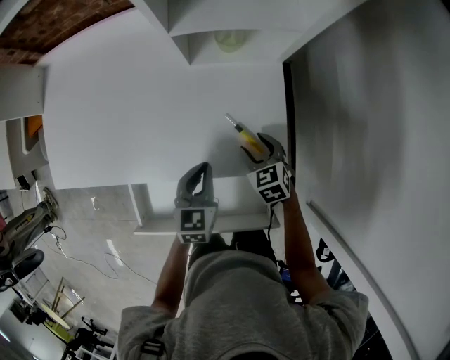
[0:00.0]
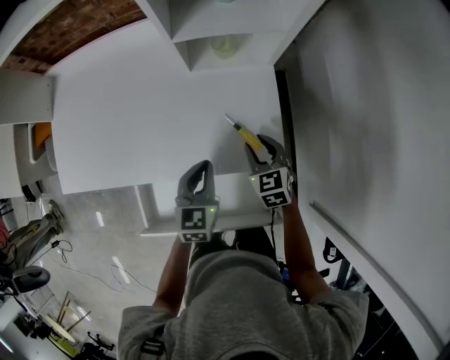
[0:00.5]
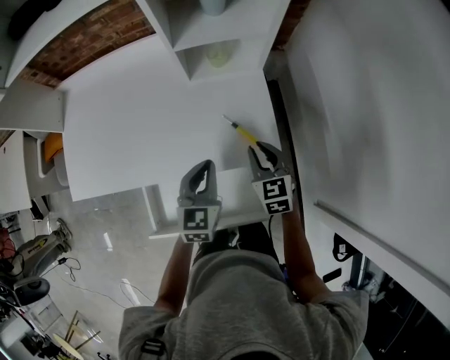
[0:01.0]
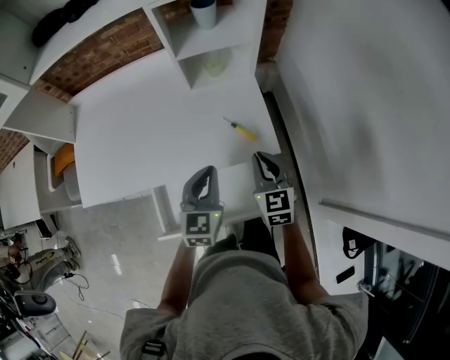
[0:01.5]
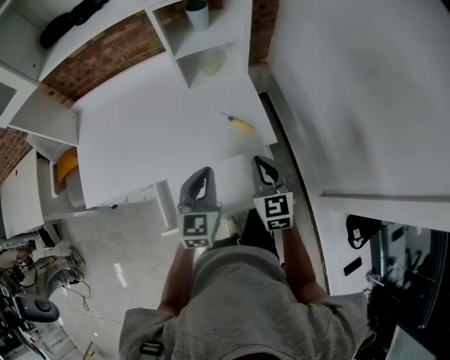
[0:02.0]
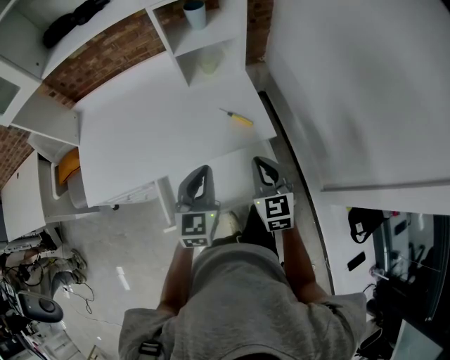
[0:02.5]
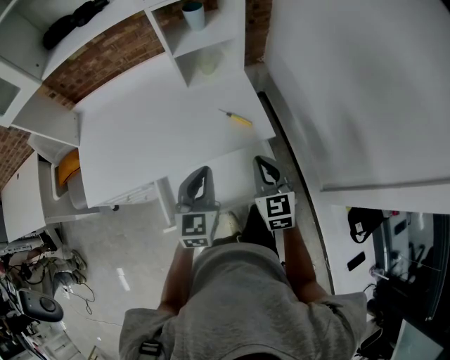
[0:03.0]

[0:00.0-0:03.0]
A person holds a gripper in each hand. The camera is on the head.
0:00.0 to 0:01.5: Both grippers move upward and backward, some 25 cm. The left gripper turns by some 20 degrees, while the right gripper swivels some 30 degrees, and closes its fingers.
0:01.5 to 0:03.0: Both grippers move backward, about 10 cm.

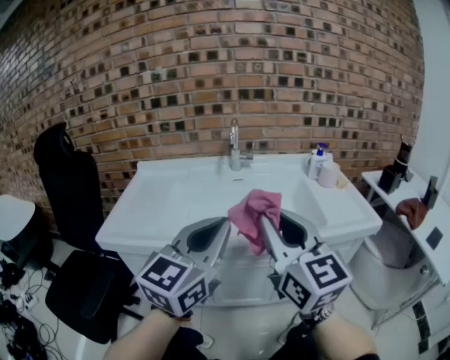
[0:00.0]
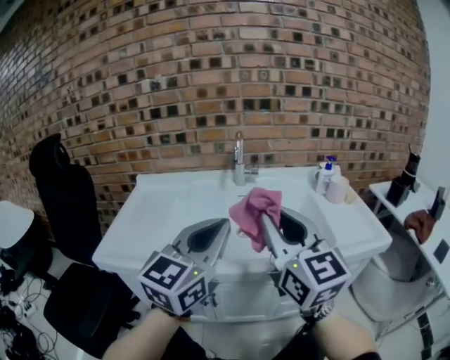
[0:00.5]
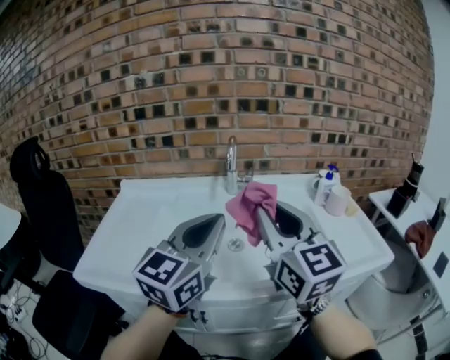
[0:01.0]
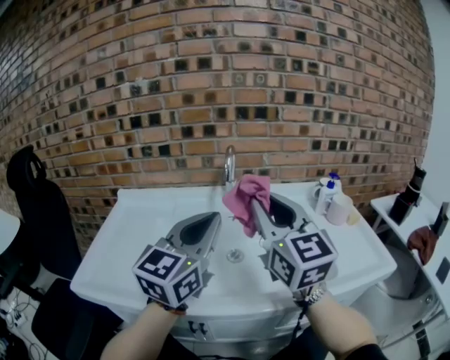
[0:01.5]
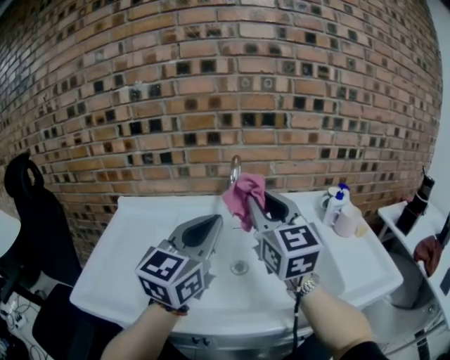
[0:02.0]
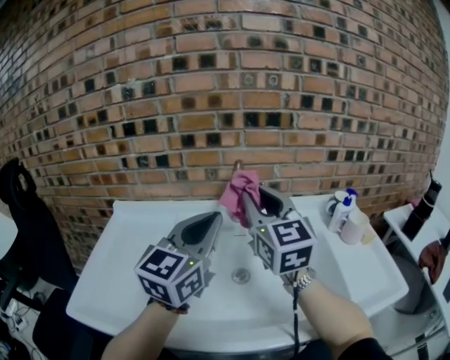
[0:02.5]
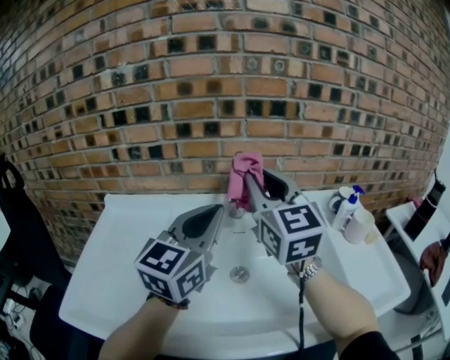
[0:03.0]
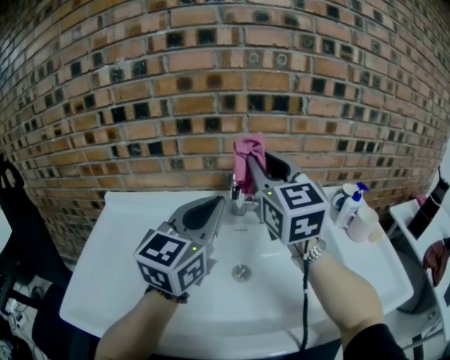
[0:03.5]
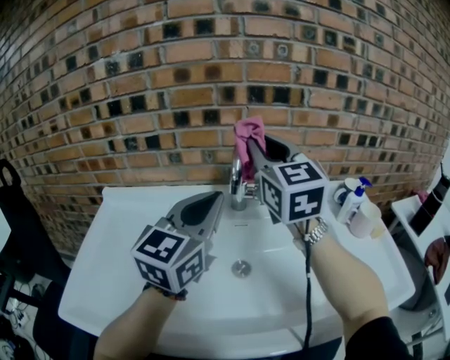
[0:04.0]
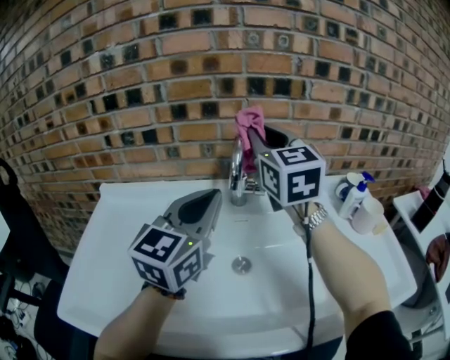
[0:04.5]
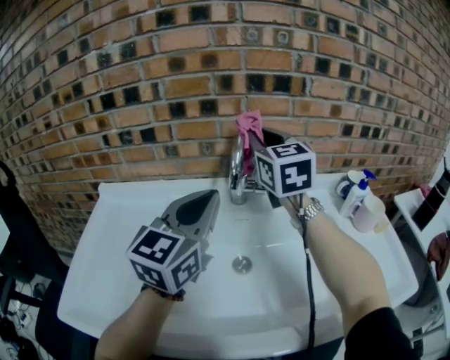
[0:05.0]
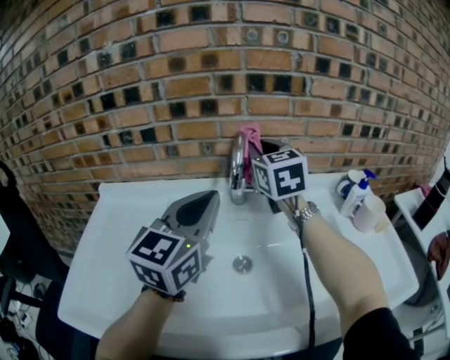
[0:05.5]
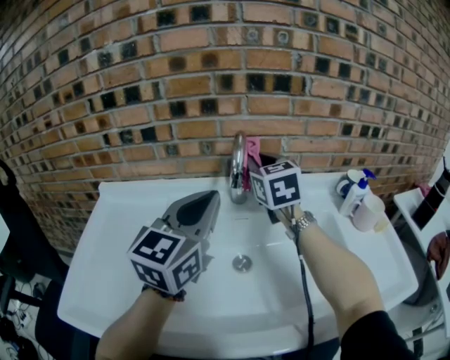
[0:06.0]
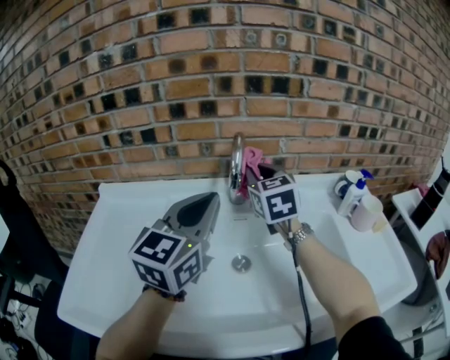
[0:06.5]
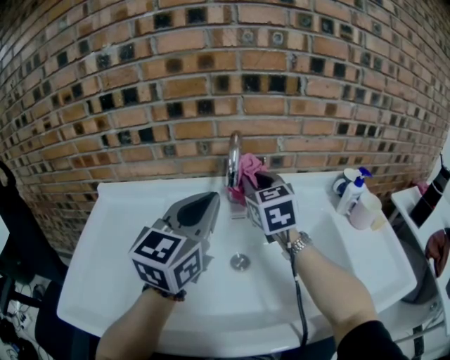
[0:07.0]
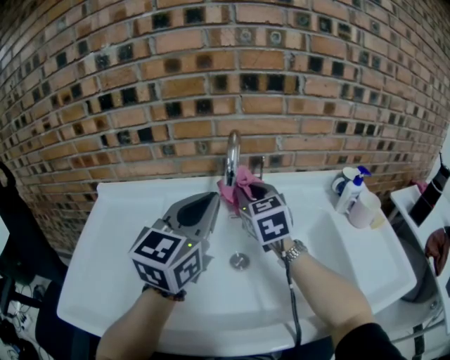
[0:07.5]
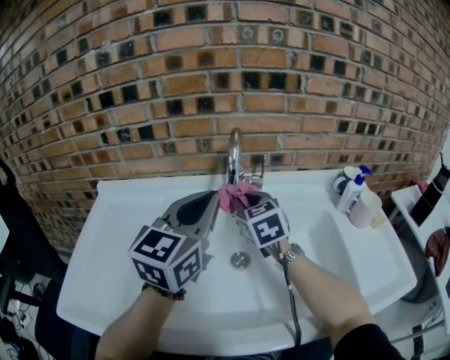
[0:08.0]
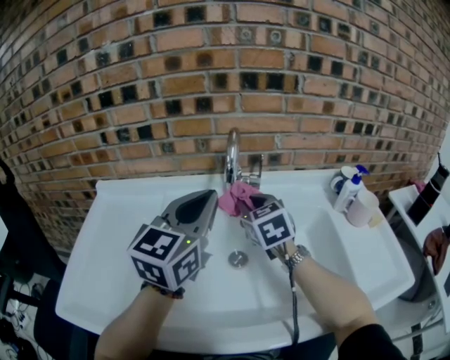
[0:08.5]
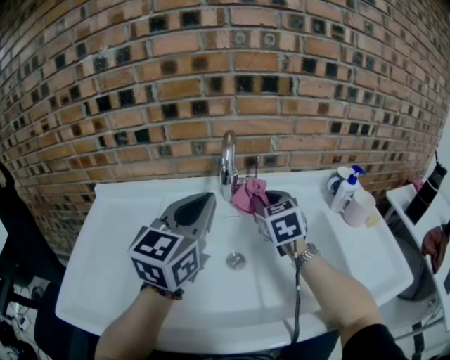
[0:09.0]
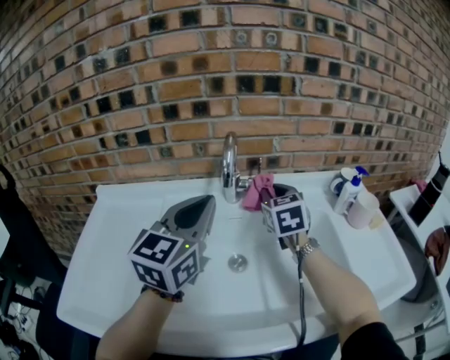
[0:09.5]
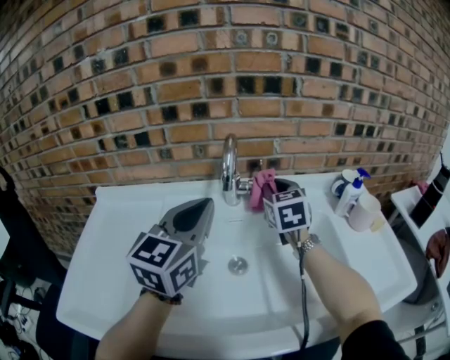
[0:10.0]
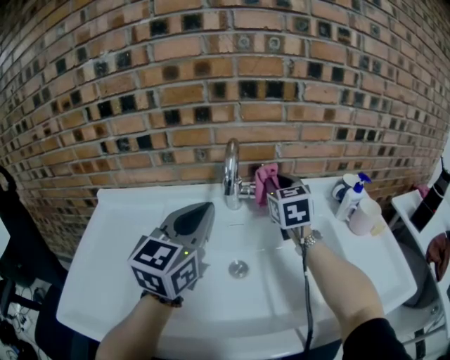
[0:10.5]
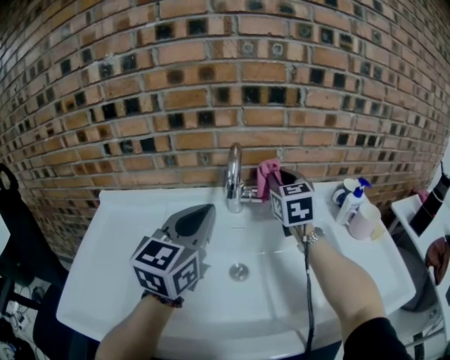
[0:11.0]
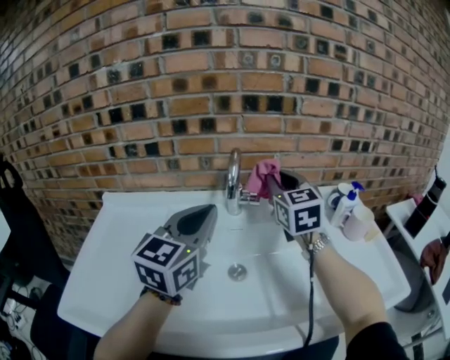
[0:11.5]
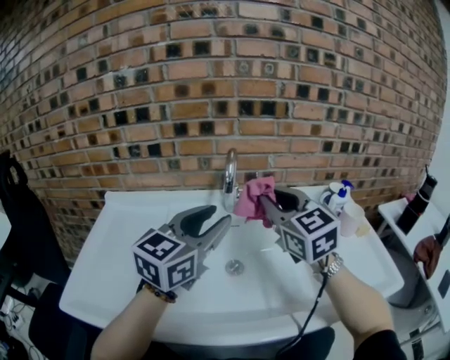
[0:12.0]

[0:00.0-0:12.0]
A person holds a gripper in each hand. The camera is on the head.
0:00.0 to 0:02.0: The two grippers go roughly 25 cm forward.
0:02.0 to 0:04.0: The two grippers go roughly 15 cm forward.
0:04.0 to 0:06.0: The right gripper travels downward and forward by some 15 cm.
0:06.0 to 0:08.0: The right gripper moves downward and backward, some 10 cm.
0:08.0 to 0:10.0: The right gripper heads to the right and forward, covering about 10 cm.
0:10.0 to 0:12.0: The left gripper travels backward by roughly 5 cm, and opens its fingers, while the right gripper is displaced backward and upward by some 20 cm, and rotates approximately 20 degrees.

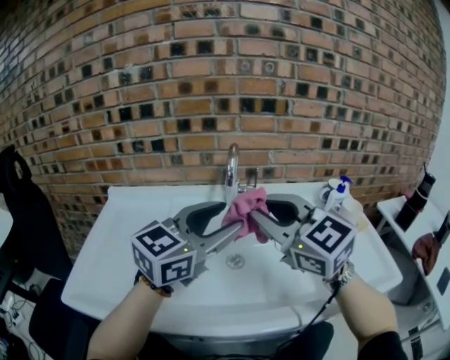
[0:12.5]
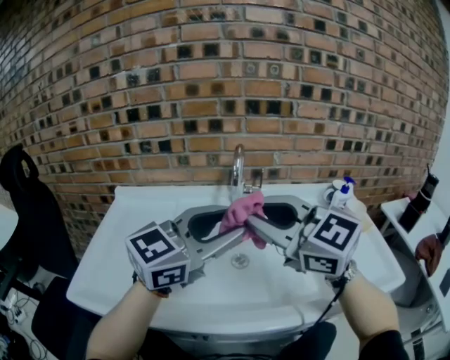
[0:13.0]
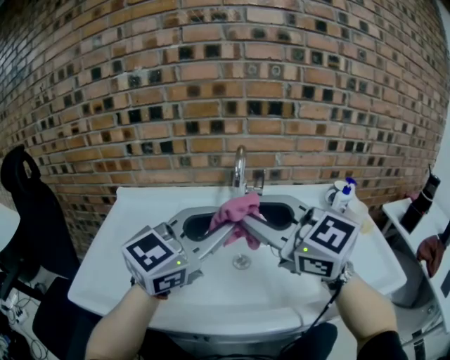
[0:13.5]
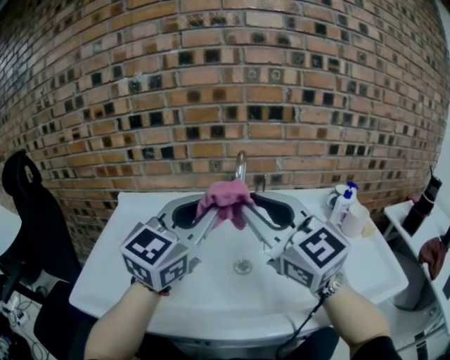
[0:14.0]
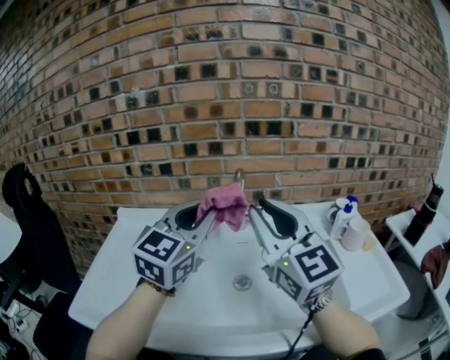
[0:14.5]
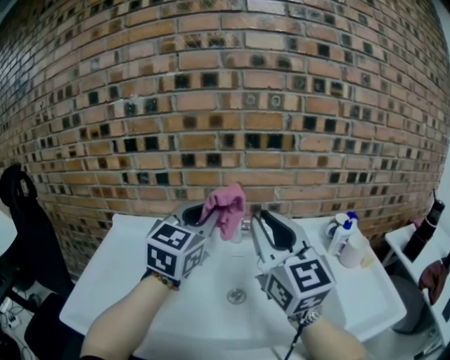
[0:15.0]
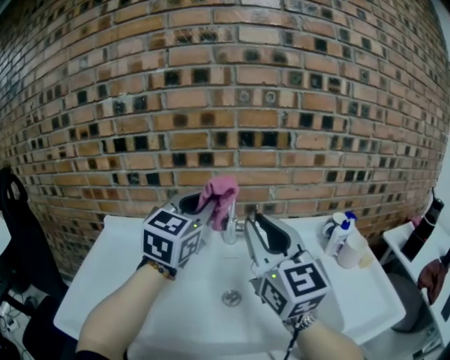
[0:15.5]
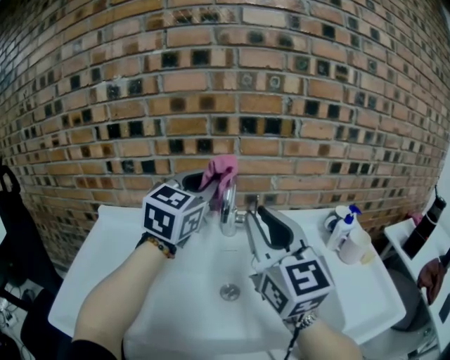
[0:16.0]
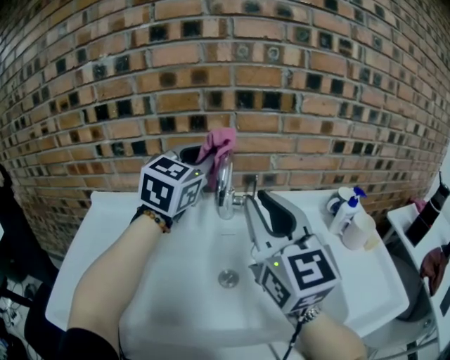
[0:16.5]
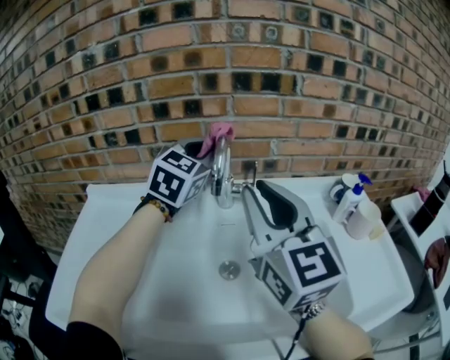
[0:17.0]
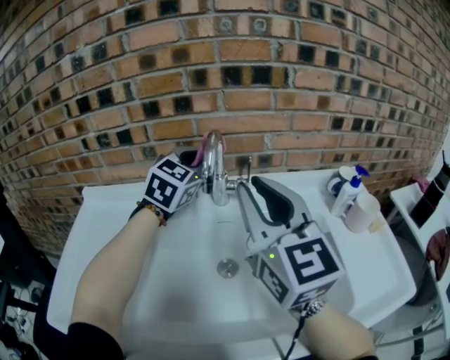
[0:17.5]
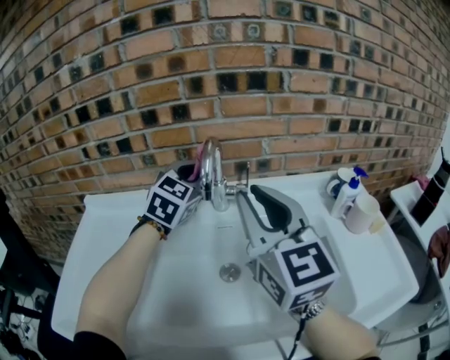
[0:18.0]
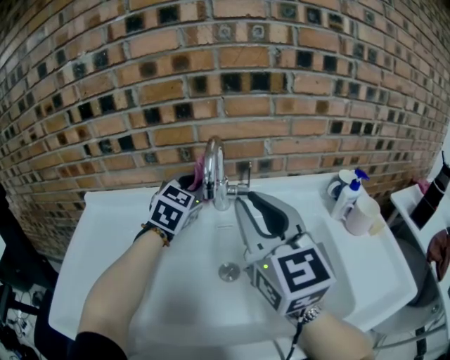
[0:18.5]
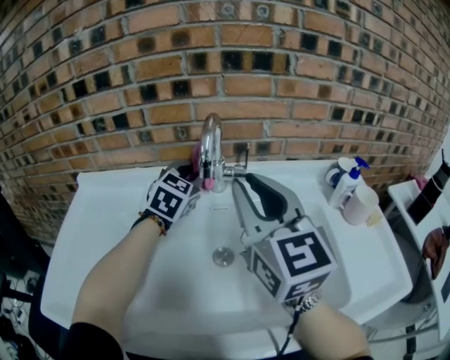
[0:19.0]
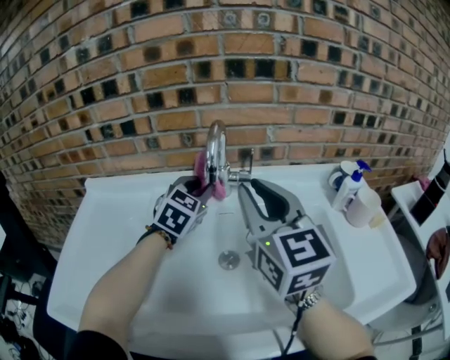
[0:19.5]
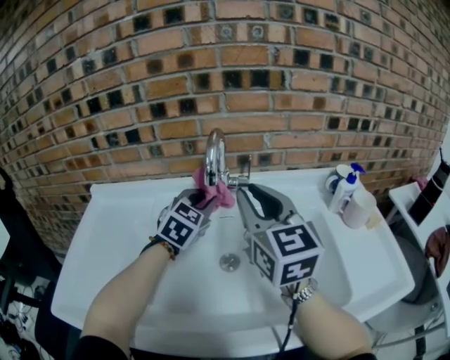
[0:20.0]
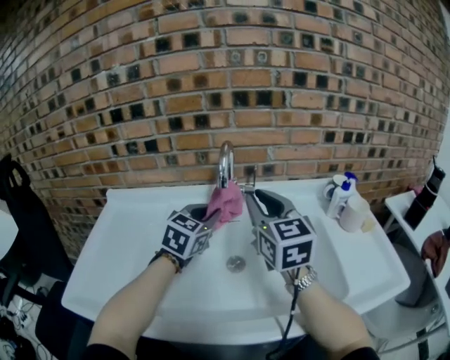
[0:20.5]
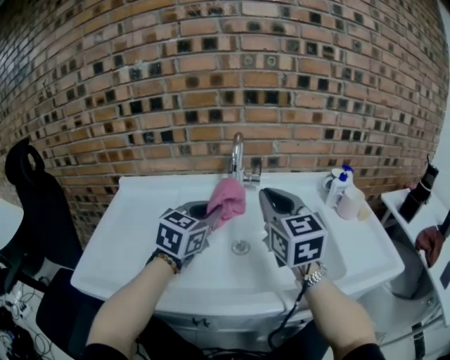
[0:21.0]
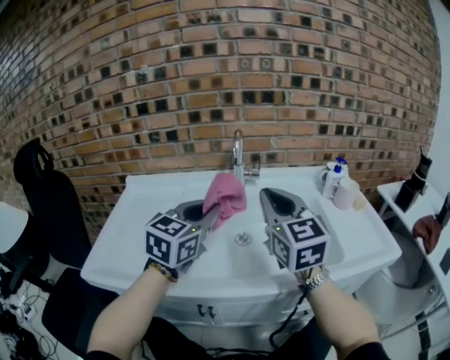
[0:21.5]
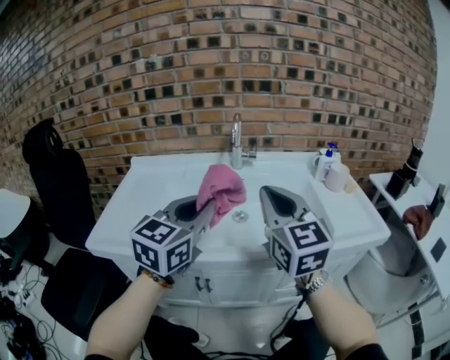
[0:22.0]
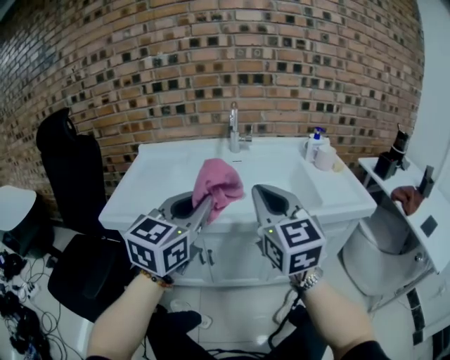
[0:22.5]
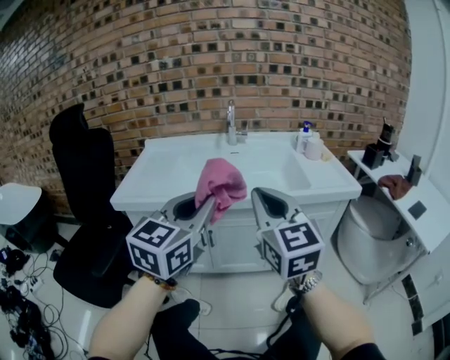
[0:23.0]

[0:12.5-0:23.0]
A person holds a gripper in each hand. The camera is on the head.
0:12.5 to 0:14.5: The left gripper moves forward, to the left and upward, roughly 10 cm, rotates roughly 30 degrees, and closes up, while the right gripper ends up approximately 5 cm from where it was, and turns by roughly 20 degrees.
0:14.5 to 0:16.5: The right gripper heads forward, covering approximately 5 cm. The left gripper travels forward by some 15 cm.
0:16.5 to 0:19.0: The left gripper moves downward, some 20 cm.
0:19.0 to 0:21.0: The right gripper heads backward, covering approximately 5 cm. Meanwhile the left gripper shifts about 20 cm backward.
0:21.0 to 0:23.0: Both grippers travel together backward, approximately 40 cm.

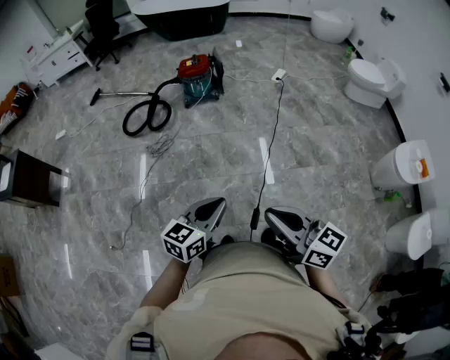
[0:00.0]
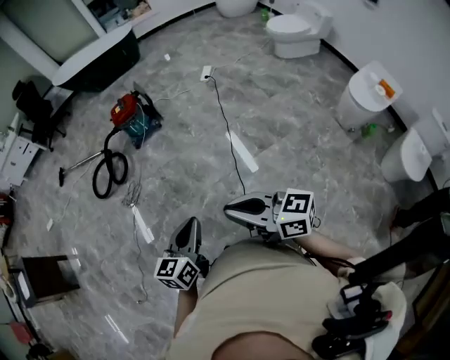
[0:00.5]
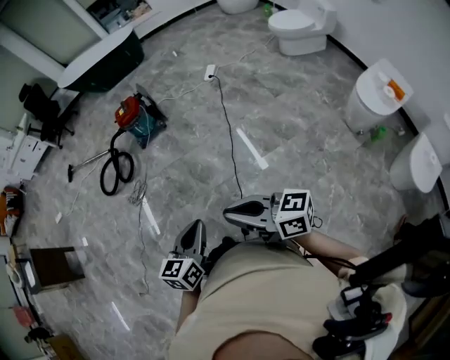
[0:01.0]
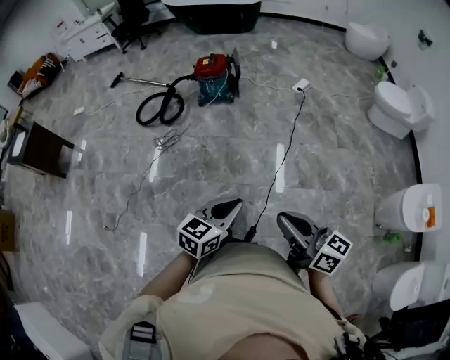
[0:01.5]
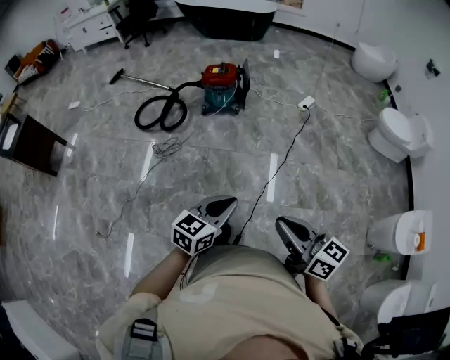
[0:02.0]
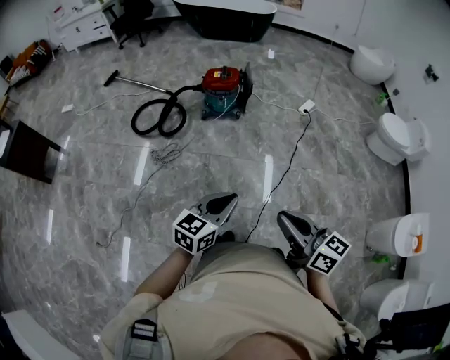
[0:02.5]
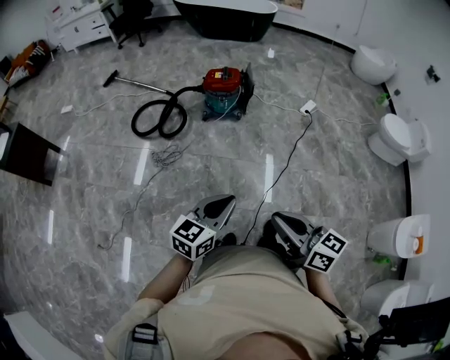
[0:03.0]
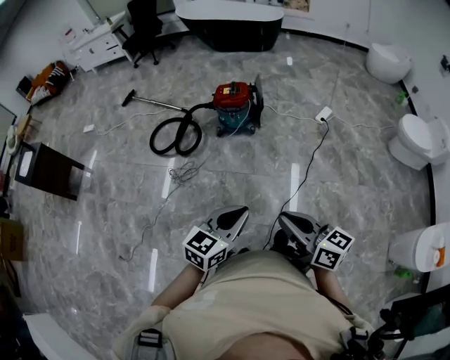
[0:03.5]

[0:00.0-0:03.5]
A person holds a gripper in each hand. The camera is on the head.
0:00.0 to 0:02.0: The two grippers go some 20 cm forward and to the right.
0:02.0 to 0:03.5: Both grippers move forward, some 15 cm.
